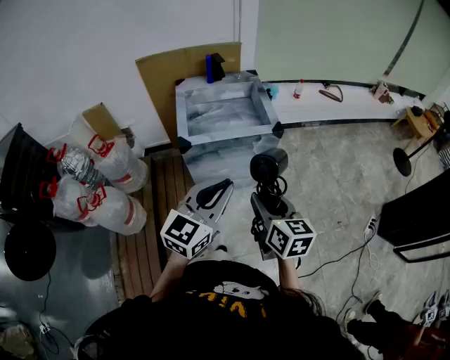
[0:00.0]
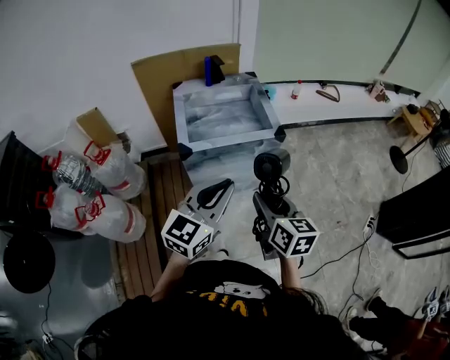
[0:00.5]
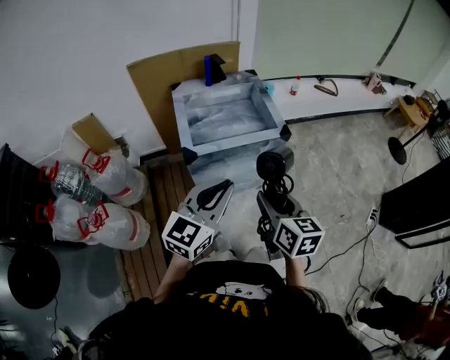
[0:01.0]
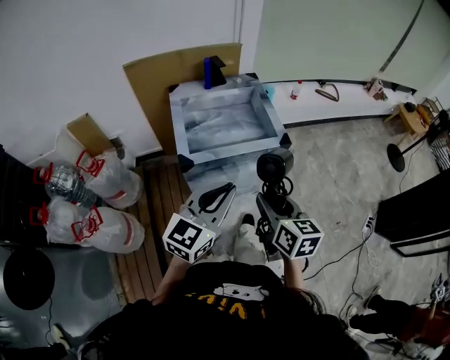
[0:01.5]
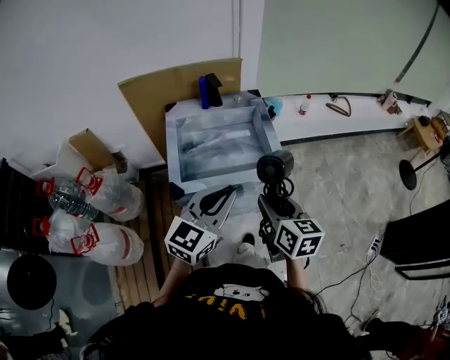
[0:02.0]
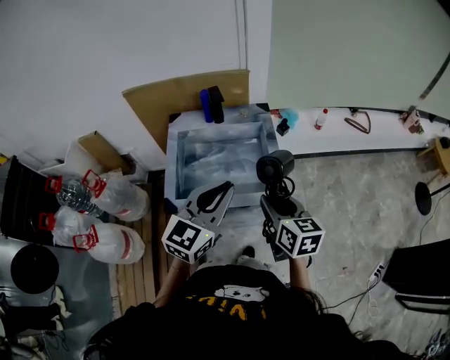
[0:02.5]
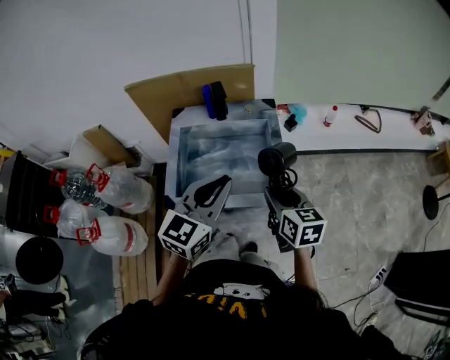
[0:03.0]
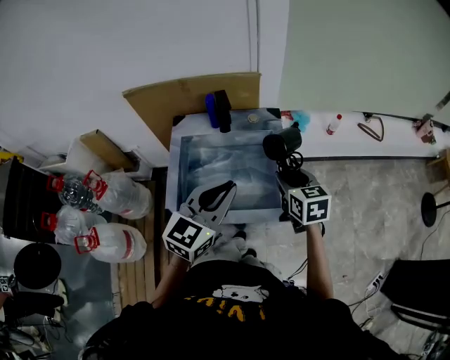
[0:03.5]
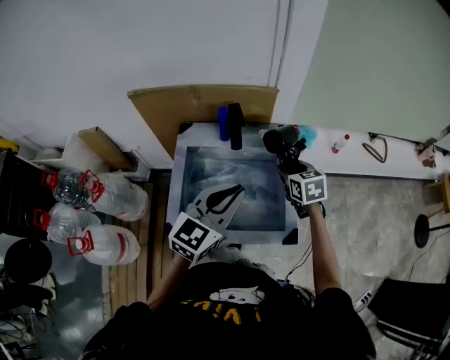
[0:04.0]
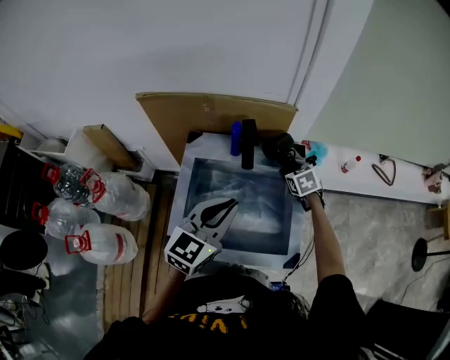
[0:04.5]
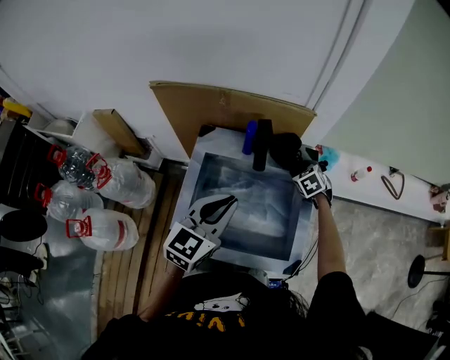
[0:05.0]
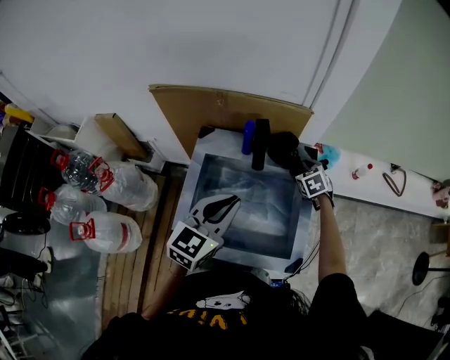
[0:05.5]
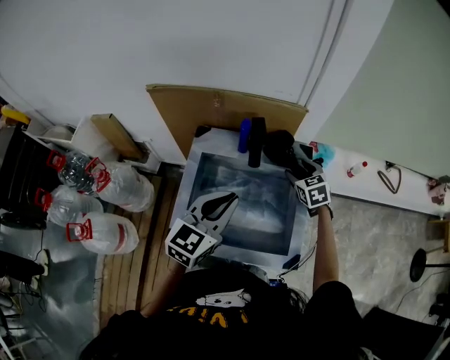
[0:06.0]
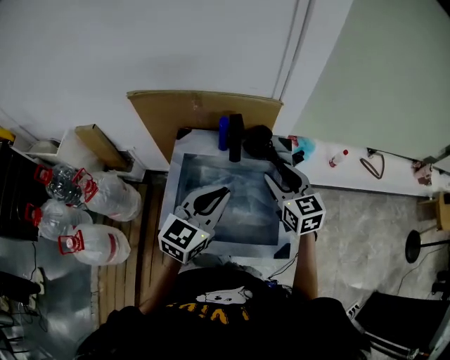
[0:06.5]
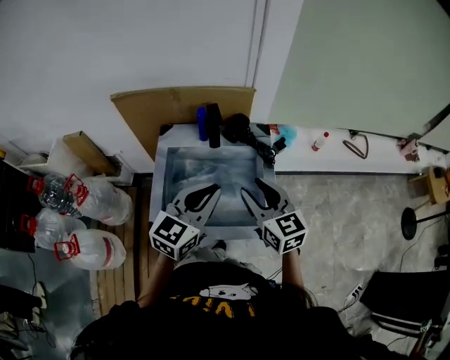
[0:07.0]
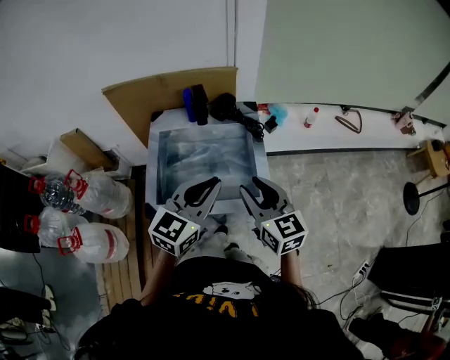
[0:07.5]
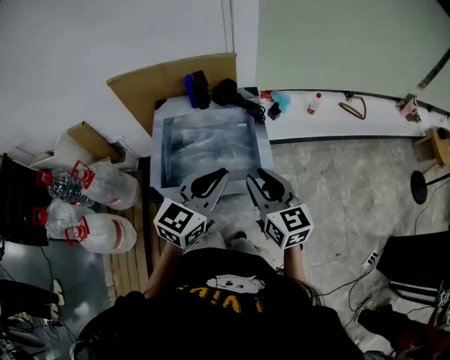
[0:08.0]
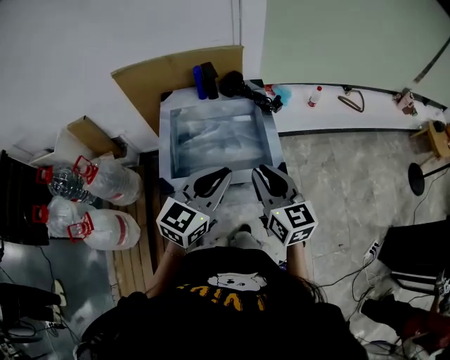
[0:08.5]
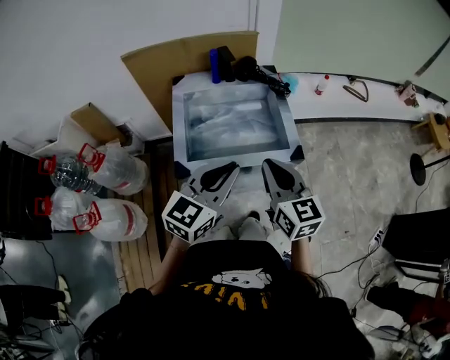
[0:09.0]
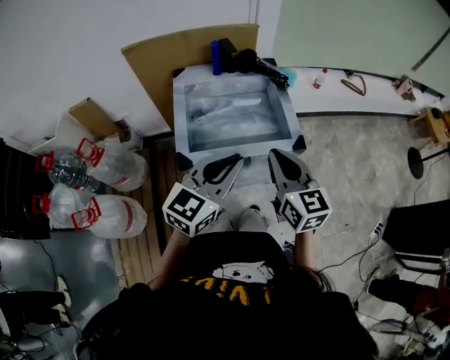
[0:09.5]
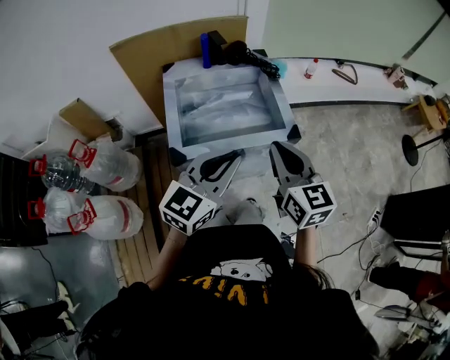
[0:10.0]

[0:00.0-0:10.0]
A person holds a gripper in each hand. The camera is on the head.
0:00.0 to 0:02.0: The grippers both shift forward by about 20 cm.
0:02.0 to 0:04.0: The left gripper heads forward, covering approximately 25 cm. The right gripper shifts roughly 40 cm forward, and swivels roughly 30 degrees.
0:04.0 to 0:06.0: The left gripper travels to the left by roughly 5 cm. Meanwhile the right gripper heads forward, covering approximately 10 cm, and opens its fingers.
0:06.0 to 0:08.0: The left gripper is displaced backward and to the right by about 20 cm; the right gripper travels backward and upward by roughly 40 cm, points its fingers roughly 30 degrees further upward, and closes its fingers.
0:08.0 to 0:10.0: The grippers both shift backward and to the left by about 15 cm. The right gripper closes.

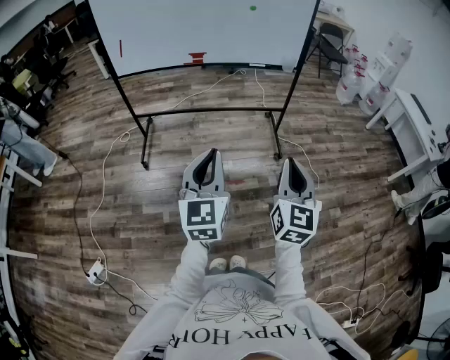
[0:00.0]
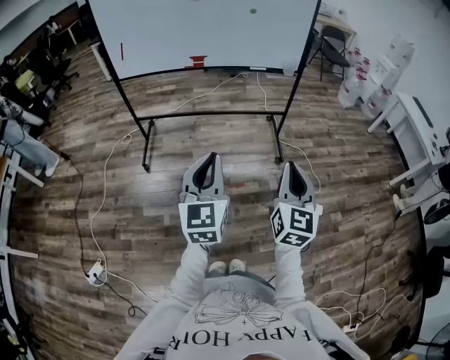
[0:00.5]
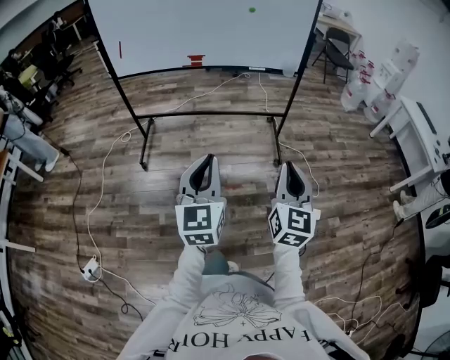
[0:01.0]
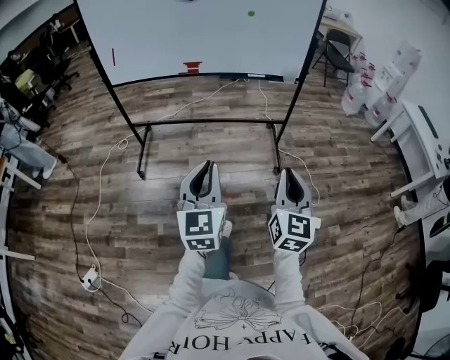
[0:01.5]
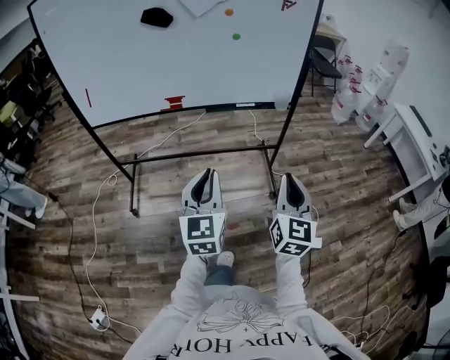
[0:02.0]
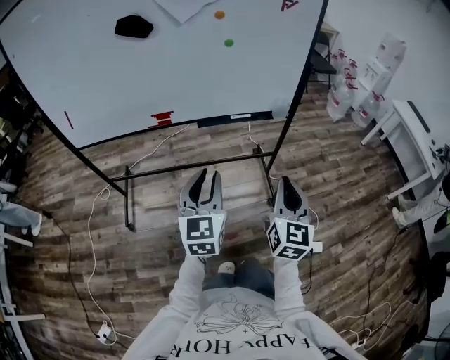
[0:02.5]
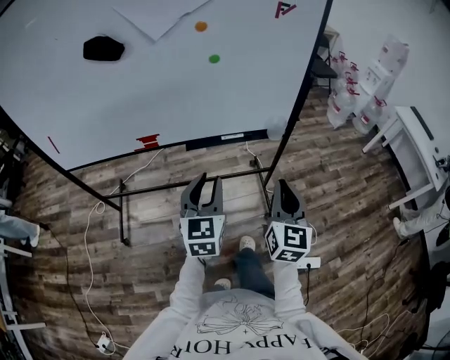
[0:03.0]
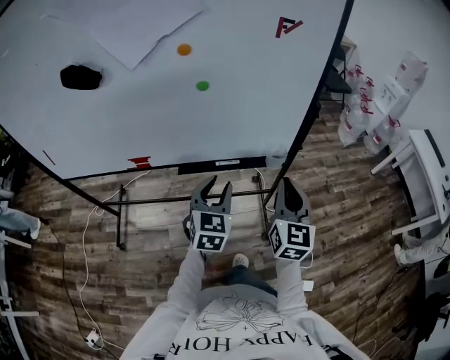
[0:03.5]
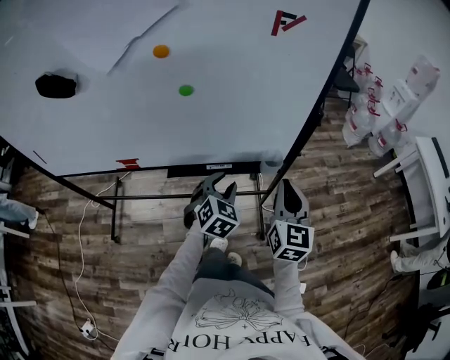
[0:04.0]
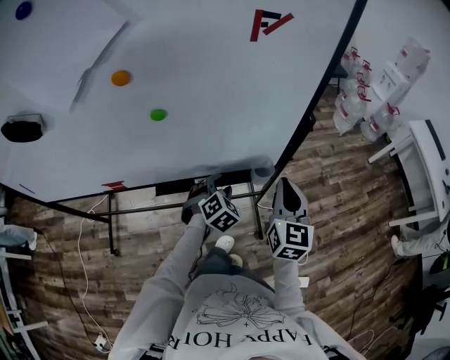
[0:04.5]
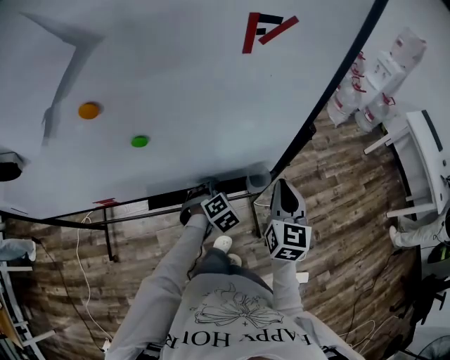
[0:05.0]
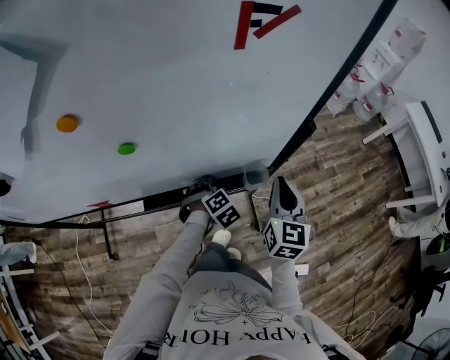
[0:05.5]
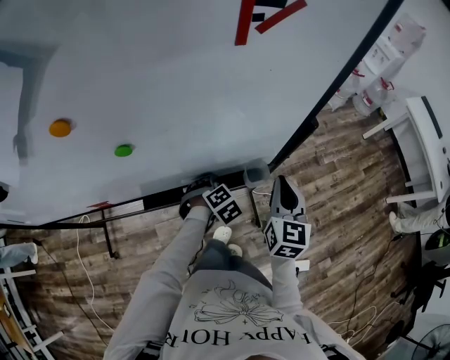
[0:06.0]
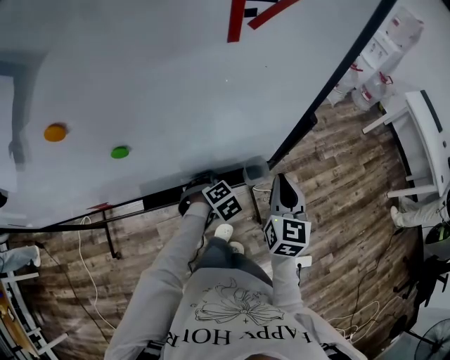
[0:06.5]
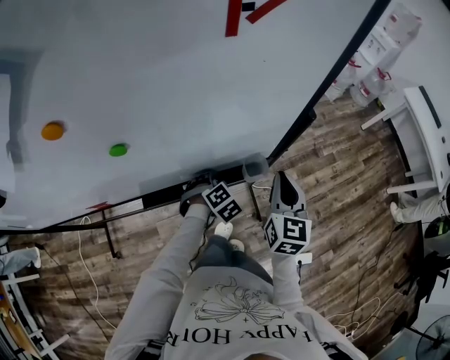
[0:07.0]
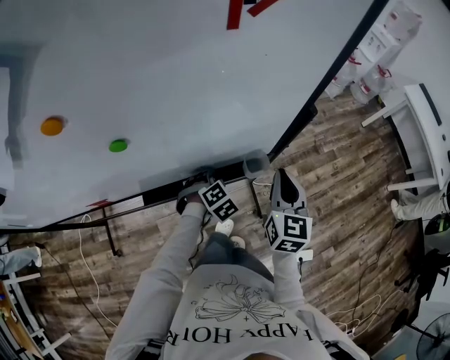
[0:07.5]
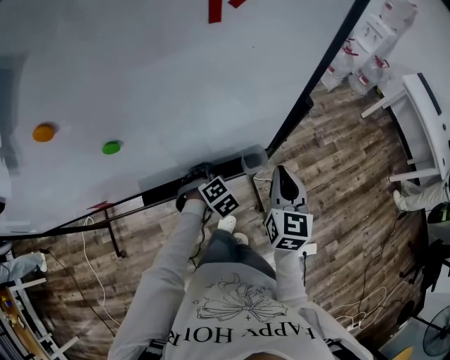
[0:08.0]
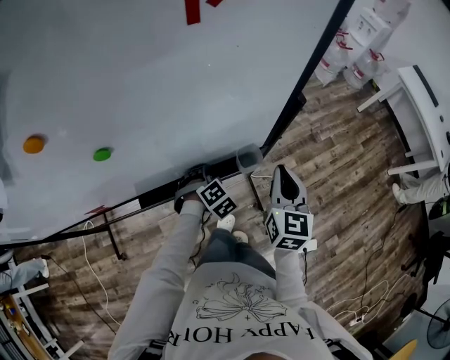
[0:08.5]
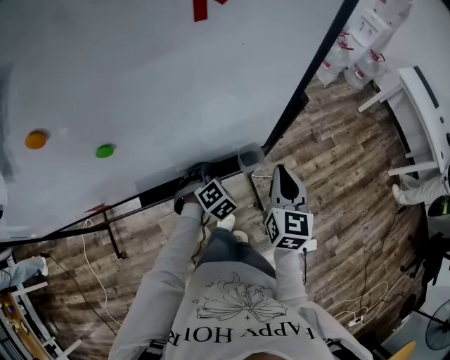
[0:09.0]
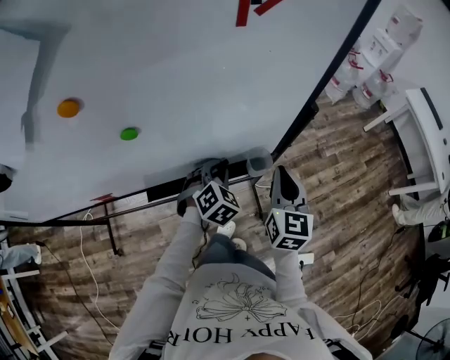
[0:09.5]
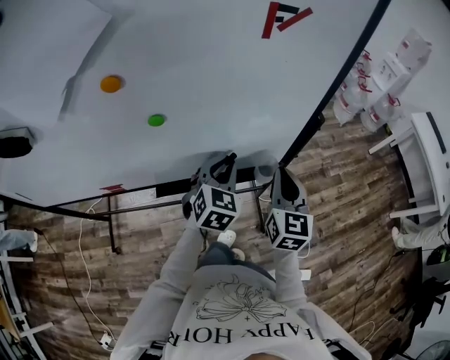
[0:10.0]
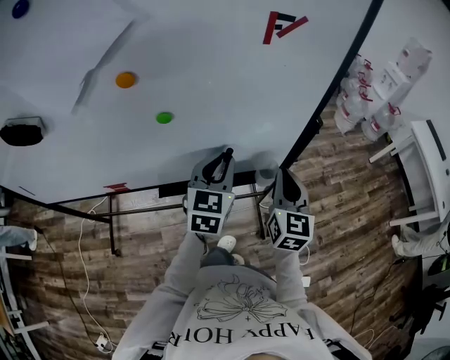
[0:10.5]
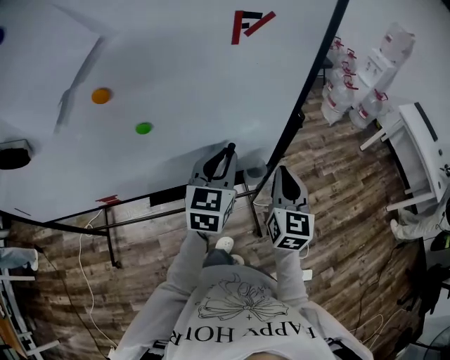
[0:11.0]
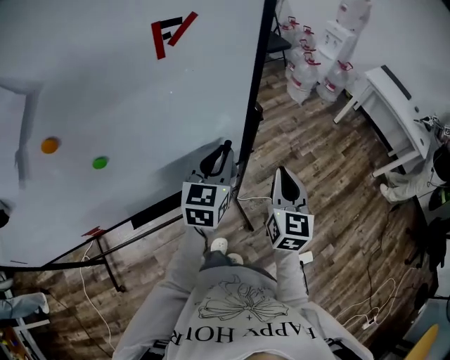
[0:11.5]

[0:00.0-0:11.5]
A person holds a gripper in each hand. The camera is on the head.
0:00.0 to 0:02.0: The two grippers go about 30 cm forward.
0:02.0 to 0:04.0: Both grippers are carried forward, some 50 cm. The left gripper tips its fingers downward by roughly 30 degrees, and opens.
0:04.0 to 0:06.0: The right gripper travels forward and downward by about 15 cm; the left gripper heads downward and forward, covering about 20 cm, and angles its fingers downward, by approximately 30 degrees.
0:06.0 to 0:07.5: The left gripper closes its fingers.
0:07.5 to 0:09.5: The left gripper travels upward by about 10 cm, and swivels approximately 20 degrees.
0:09.5 to 0:11.5: The right gripper goes some 10 cm to the right and upward. The left gripper goes some 20 cm upward and to the right, and angles its fingers upward, by roughly 30 degrees.

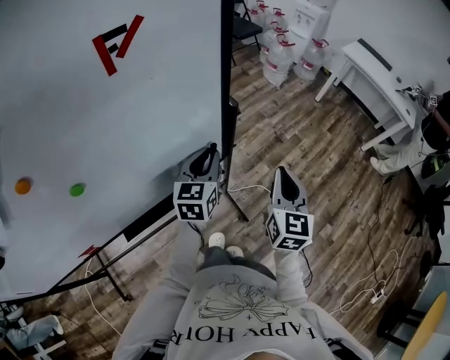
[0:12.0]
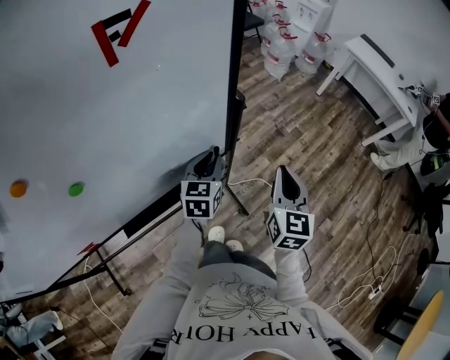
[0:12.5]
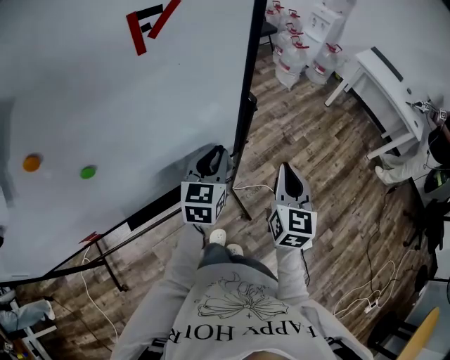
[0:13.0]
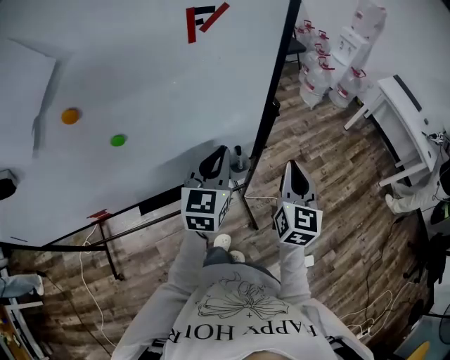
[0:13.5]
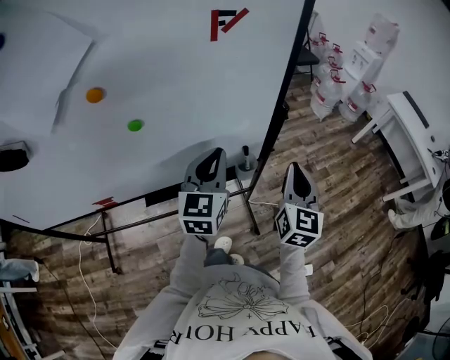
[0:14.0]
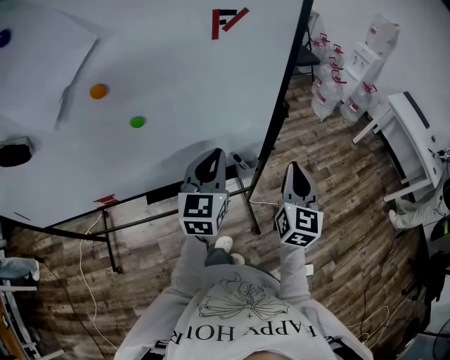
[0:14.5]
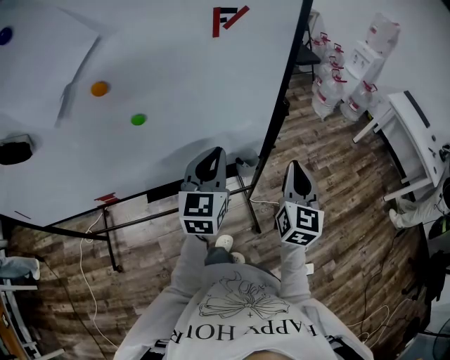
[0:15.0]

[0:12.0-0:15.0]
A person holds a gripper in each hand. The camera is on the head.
0:12.0 to 0:13.5: The right gripper travels to the left by some 5 cm. The left gripper moves upward and backward, approximately 10 cm.
0:13.5 to 0:15.0: The left gripper shifts by some 5 cm.

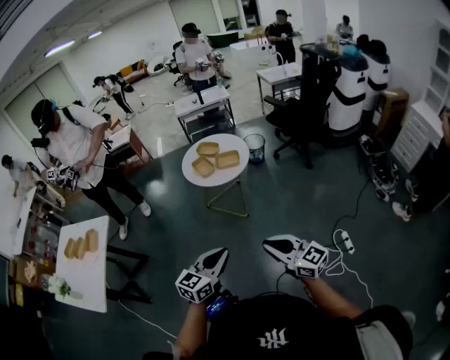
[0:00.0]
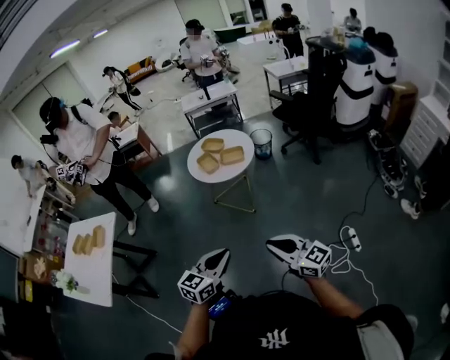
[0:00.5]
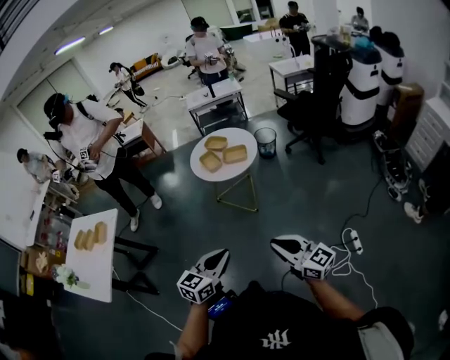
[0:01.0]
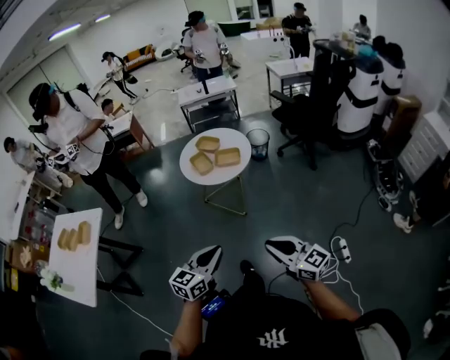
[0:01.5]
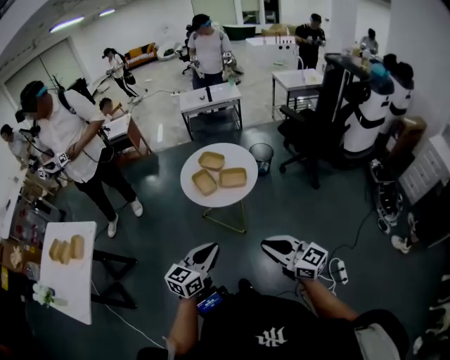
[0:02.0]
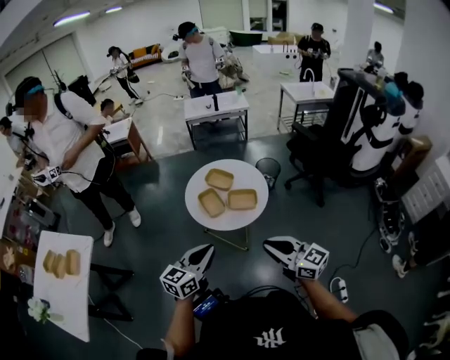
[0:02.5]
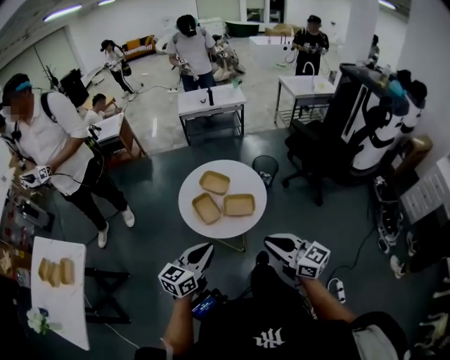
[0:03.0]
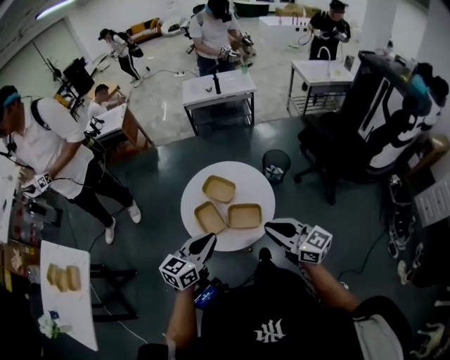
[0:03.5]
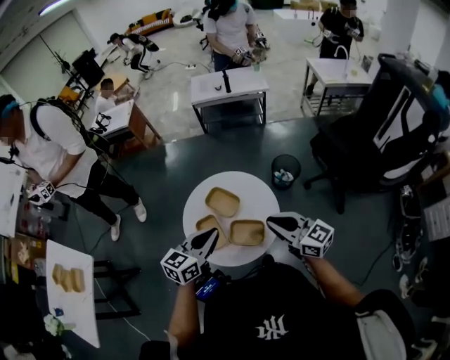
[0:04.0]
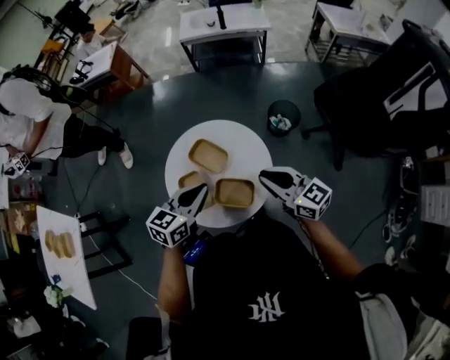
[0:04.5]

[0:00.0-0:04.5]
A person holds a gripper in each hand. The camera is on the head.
0:00.0 to 0:02.0: The two grippers go about 20 cm forward.
0:02.0 to 0:04.5: Both grippers are carried forward, approximately 50 cm.
